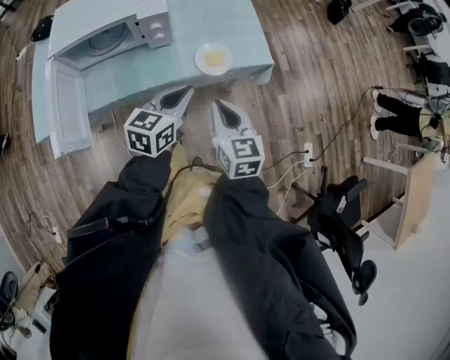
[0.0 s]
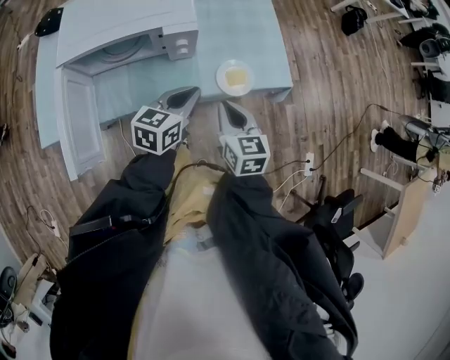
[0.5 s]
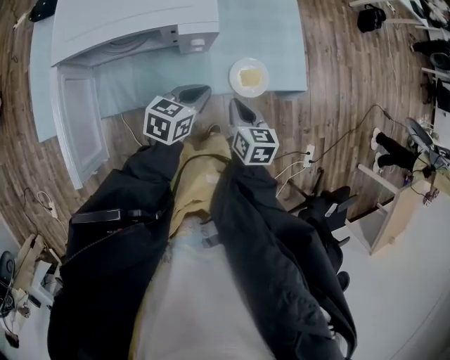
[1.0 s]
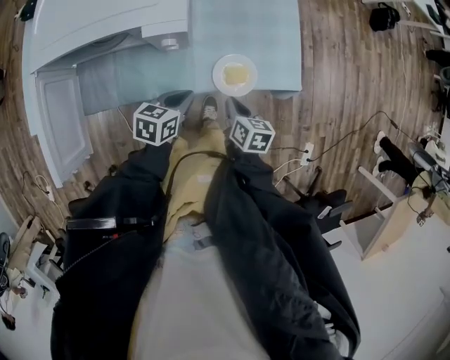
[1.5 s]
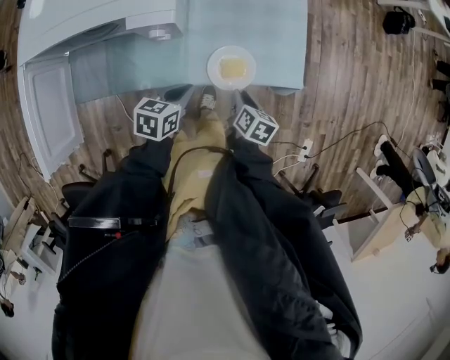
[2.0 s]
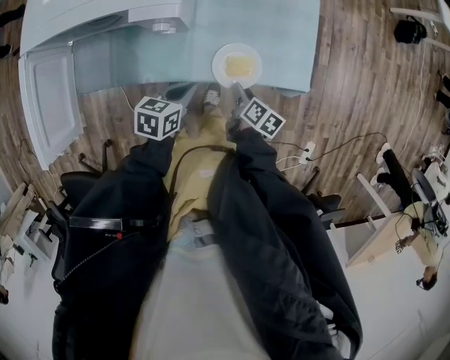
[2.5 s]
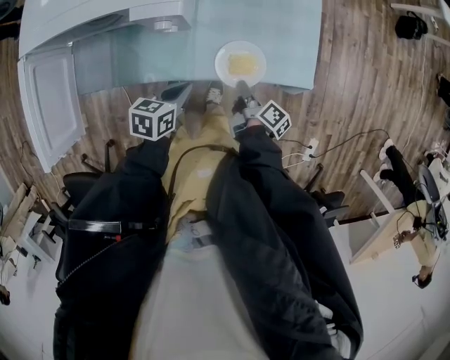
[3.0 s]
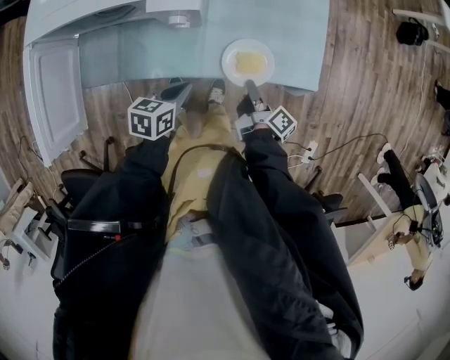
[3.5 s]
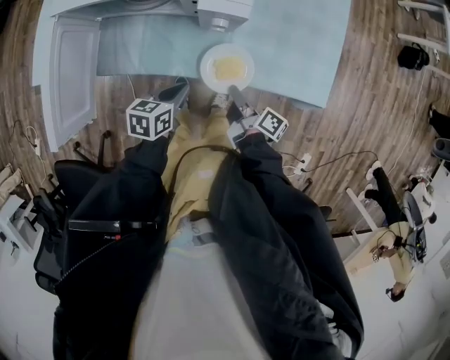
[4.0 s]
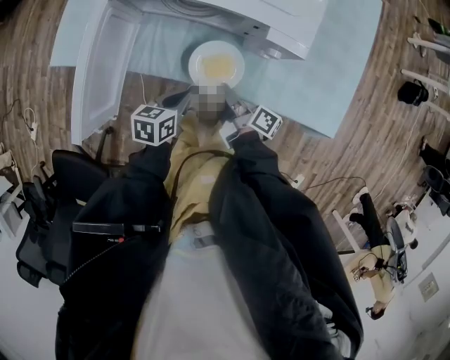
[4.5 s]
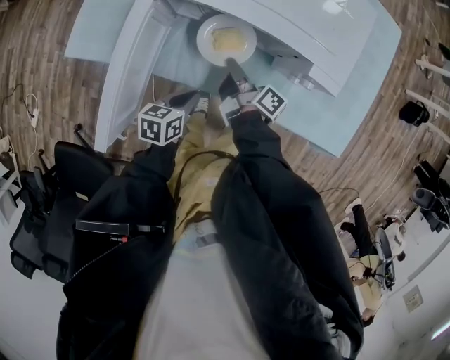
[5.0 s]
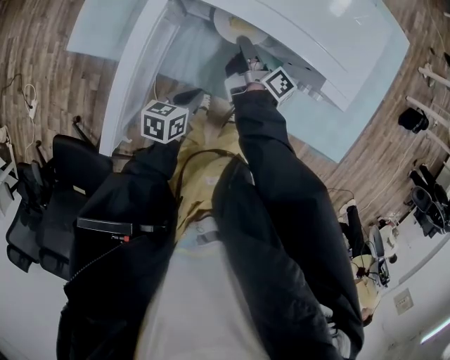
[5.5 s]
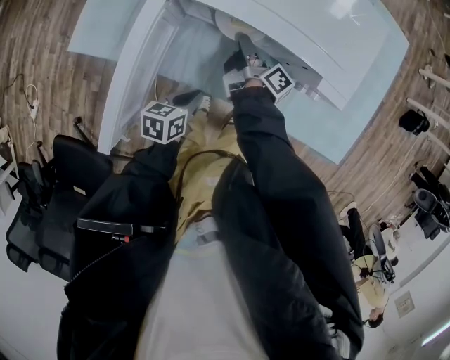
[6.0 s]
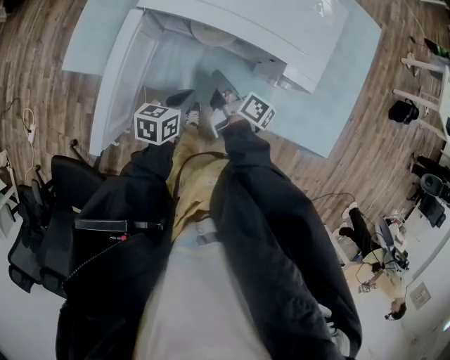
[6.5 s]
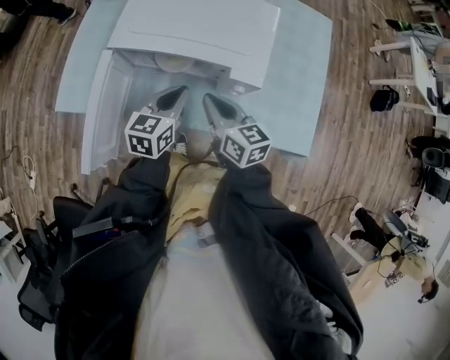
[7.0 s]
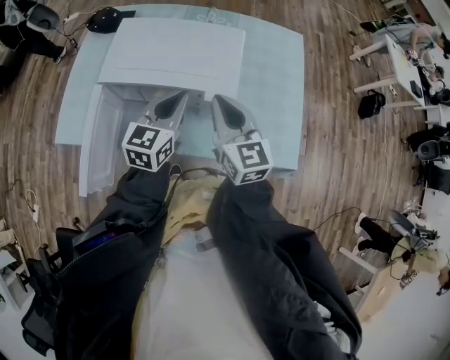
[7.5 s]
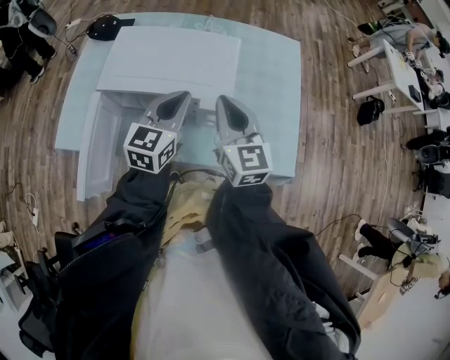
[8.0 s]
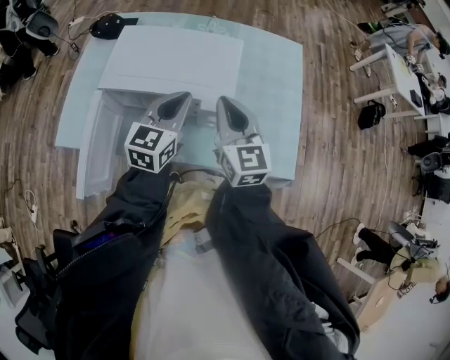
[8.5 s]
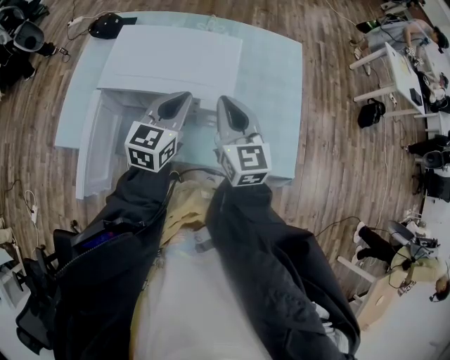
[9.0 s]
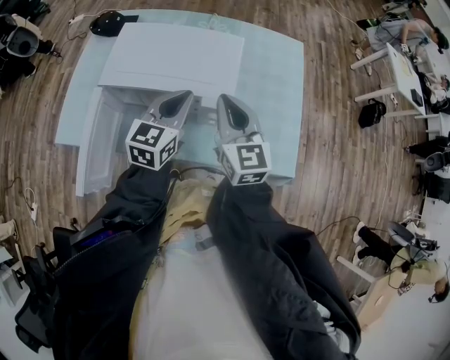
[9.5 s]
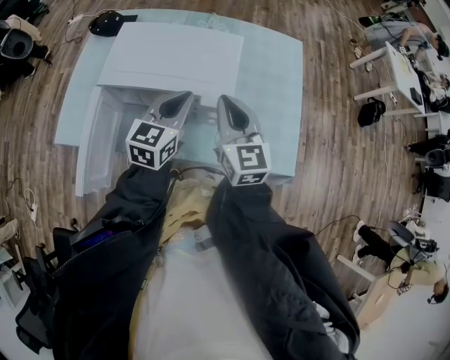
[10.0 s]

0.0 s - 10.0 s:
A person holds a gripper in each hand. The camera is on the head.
0.0 s - 2.0 s: Both grippers move downward and forward, roughly 25 cm. The left gripper swivels approximately 30 degrees. The right gripper changes its angle by roughly 40 degrees, and opens.
2.0 s - 4.0 s: Both grippers travel together to the left, some 10 cm. The right gripper tips its fingers upward by approximately 30 degrees.
4.0 s - 6.0 s: The left gripper travels to the left by some 15 cm. Meanwhile the right gripper shifts about 35 cm to the left and forward.
6.0 s - 8.0 s: The left gripper heads upward, to the right and forward, covering approximately 35 cm, and points its fingers about 30 degrees further upward. The right gripper shifts roughly 35 cm upward and to the right, and twists roughly 90 degrees counterclockwise, seen from behind.
8.0 s - 10.0 s: There are only small adjustments of the grippers.

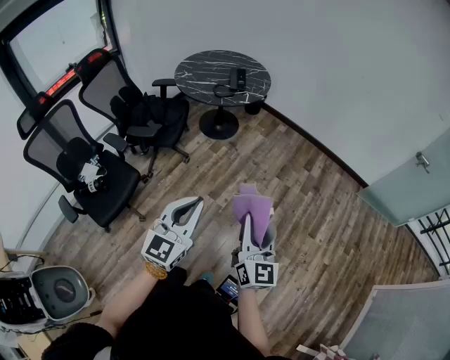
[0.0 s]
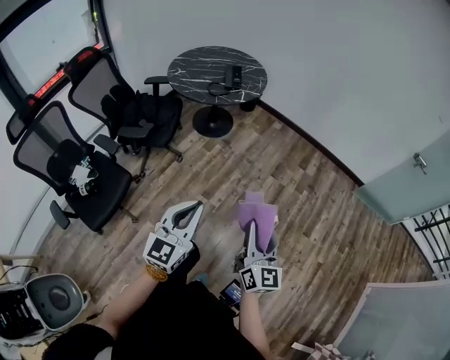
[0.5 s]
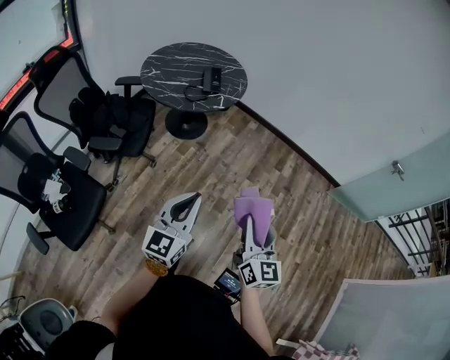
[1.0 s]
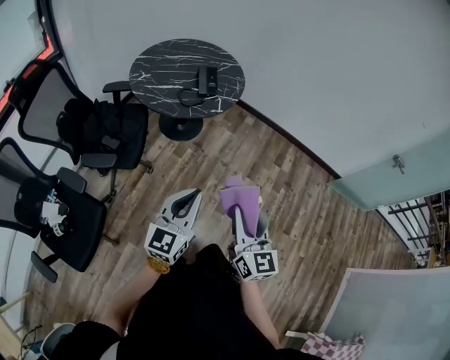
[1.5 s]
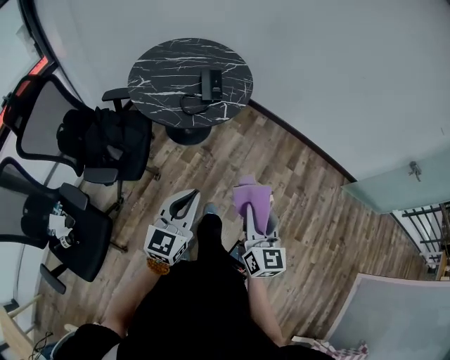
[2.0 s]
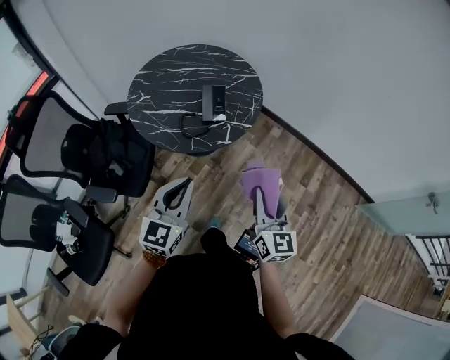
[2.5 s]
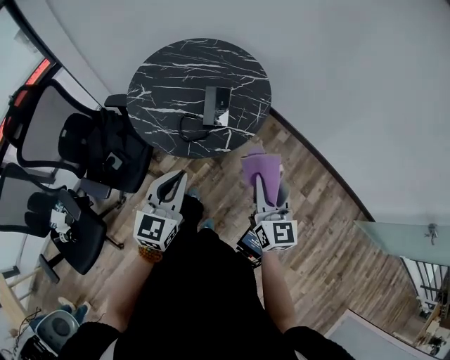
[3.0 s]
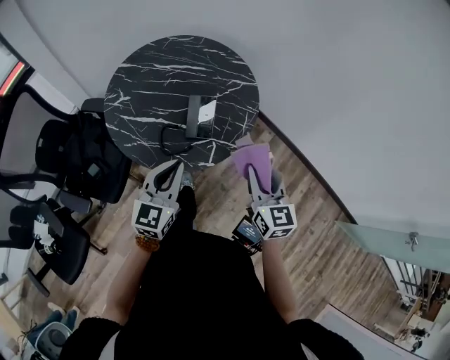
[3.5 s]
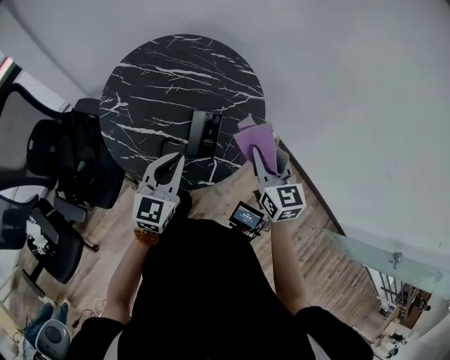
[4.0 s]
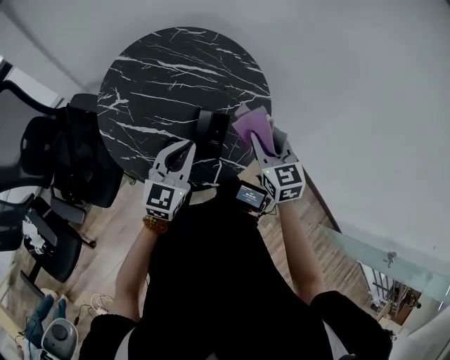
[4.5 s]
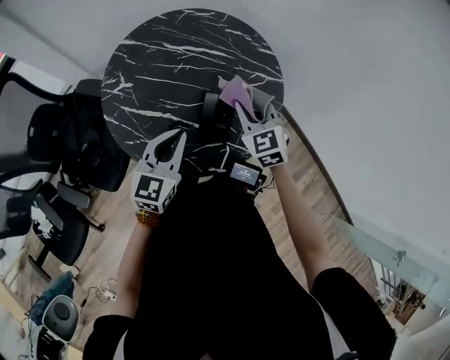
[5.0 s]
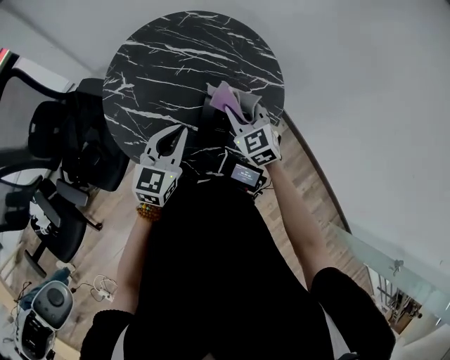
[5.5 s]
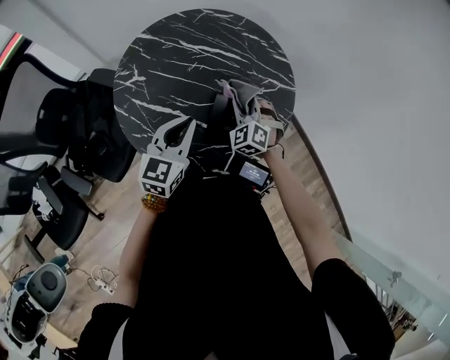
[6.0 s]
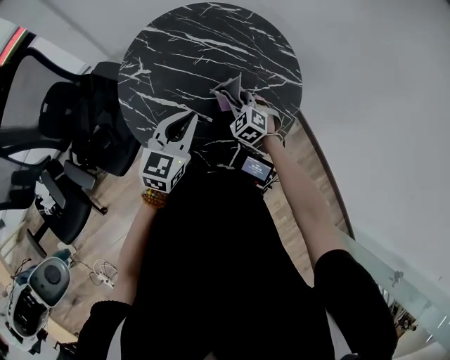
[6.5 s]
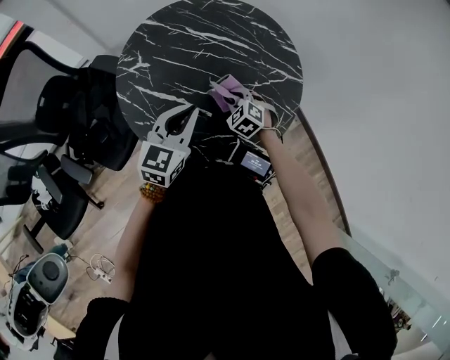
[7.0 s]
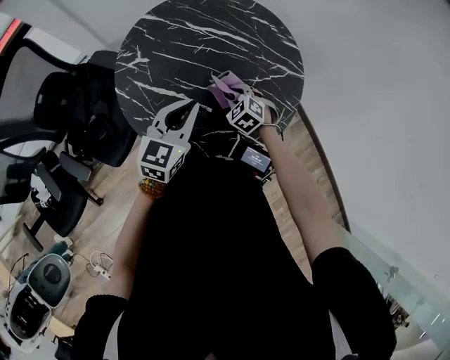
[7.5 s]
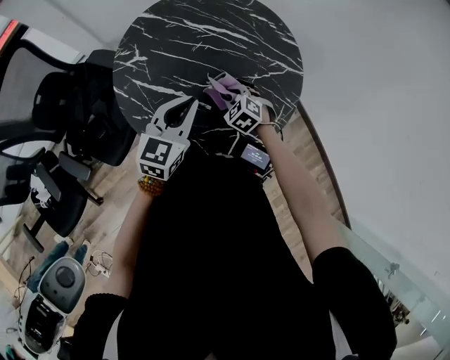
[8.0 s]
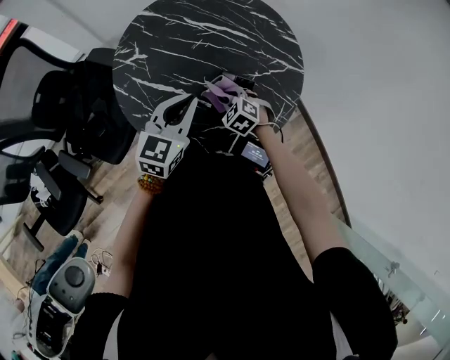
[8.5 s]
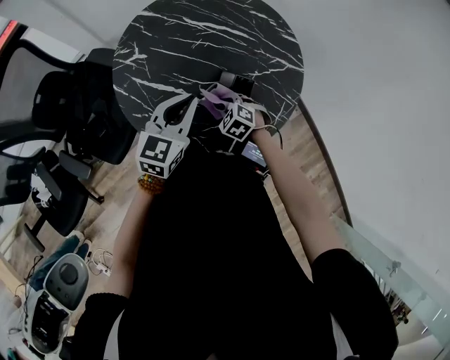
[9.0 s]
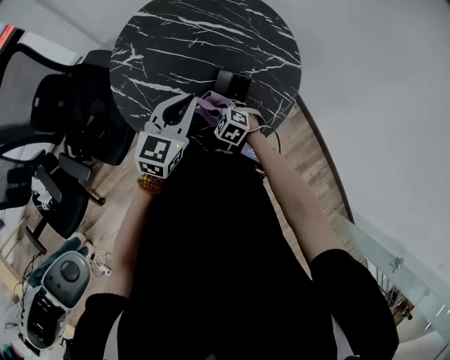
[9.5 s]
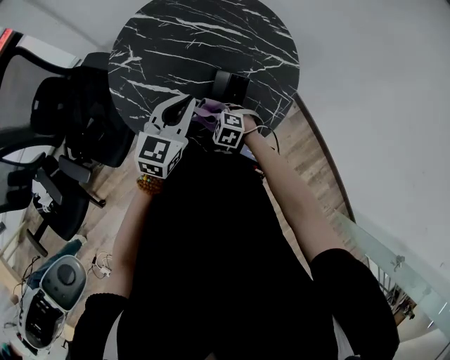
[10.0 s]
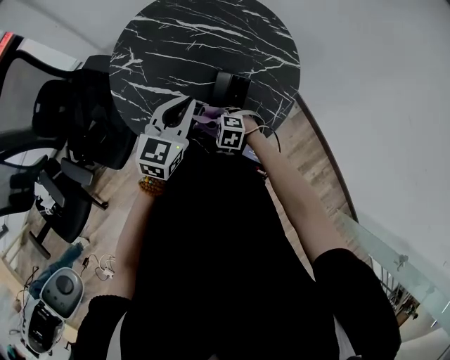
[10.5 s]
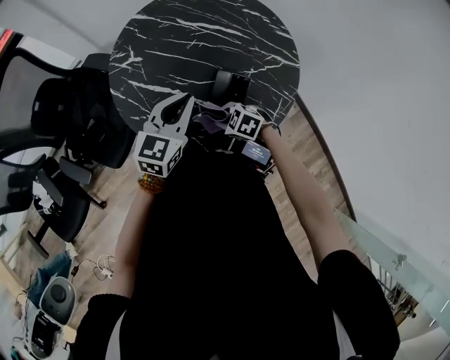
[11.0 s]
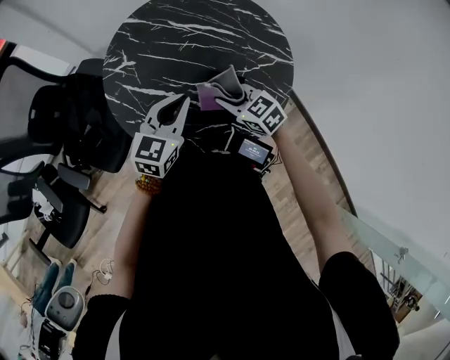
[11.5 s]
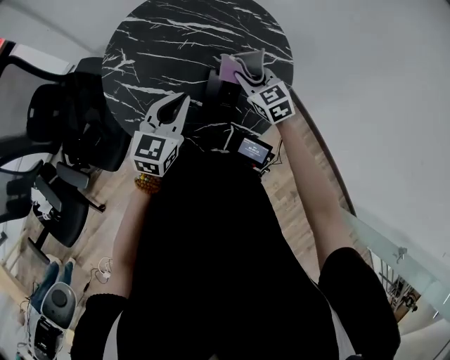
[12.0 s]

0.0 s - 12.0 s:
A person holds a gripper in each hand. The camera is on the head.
0.0 s - 2.0 s: Both grippers travel together forward, roughly 40 cm.
2.0 s - 4.0 s: The pair of grippers is taken forward, some 60 cm. The right gripper rotates about 30 degrees.
4.0 s - 6.0 s: The right gripper goes about 25 cm downward, forward and to the left, and rotates around the line of its fingers by about 50 degrees, counterclockwise from behind, while the left gripper goes approximately 5 cm forward.
6.0 s - 8.0 s: The right gripper travels downward by roughly 10 cm, and turns by about 30 degrees.
8.0 s - 10.0 s: The right gripper shifts roughly 10 cm backward.
10.0 s - 12.0 s: The right gripper travels upward by roughly 15 cm, and tilts its fingers some 30 degrees upward.

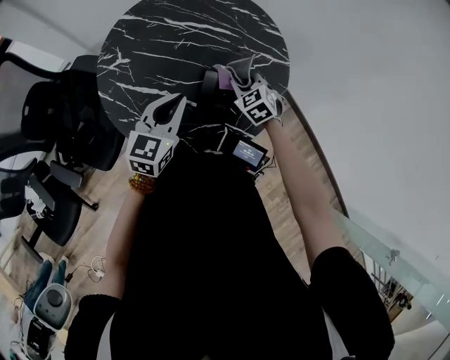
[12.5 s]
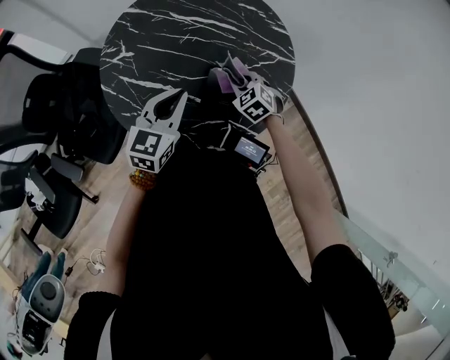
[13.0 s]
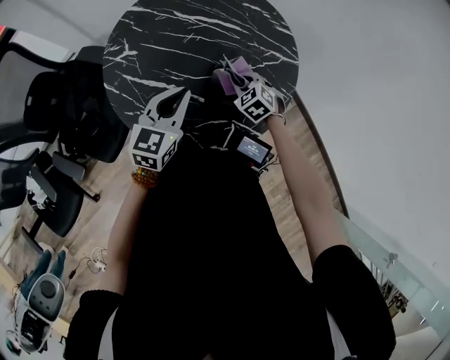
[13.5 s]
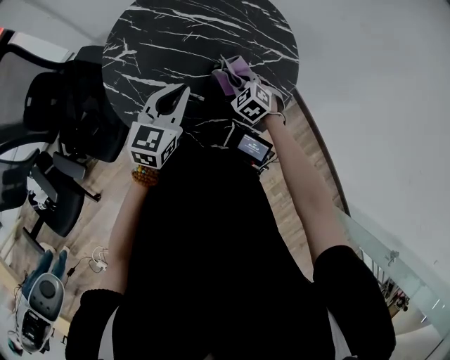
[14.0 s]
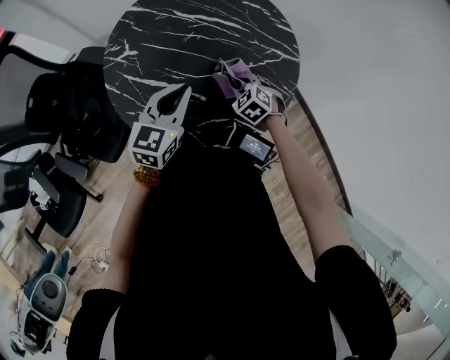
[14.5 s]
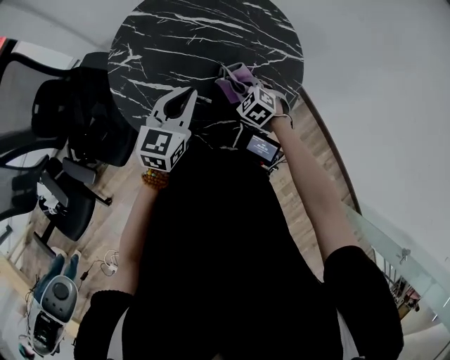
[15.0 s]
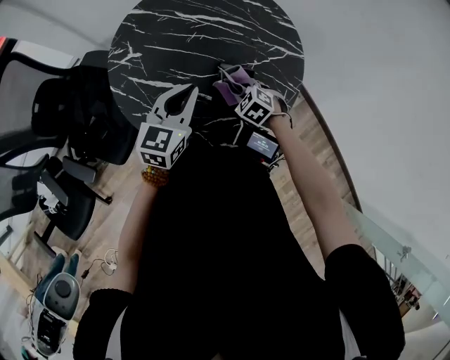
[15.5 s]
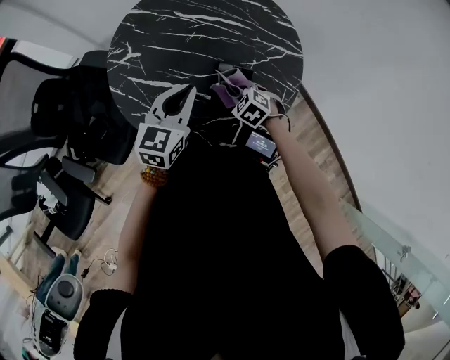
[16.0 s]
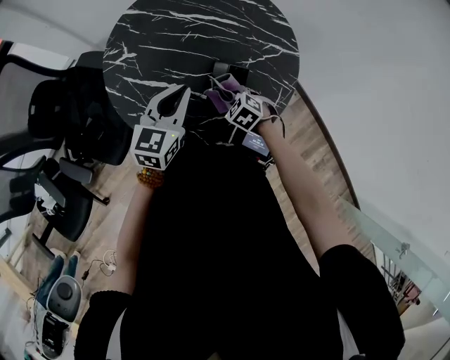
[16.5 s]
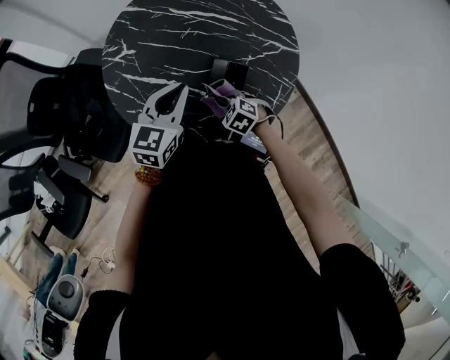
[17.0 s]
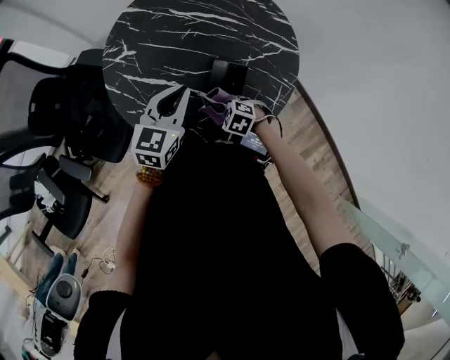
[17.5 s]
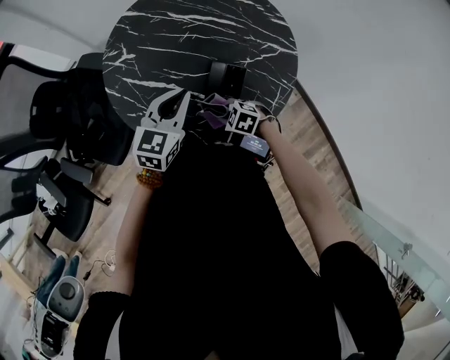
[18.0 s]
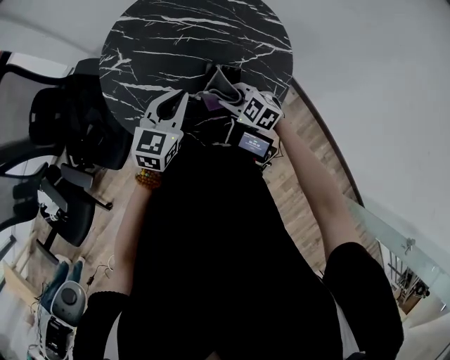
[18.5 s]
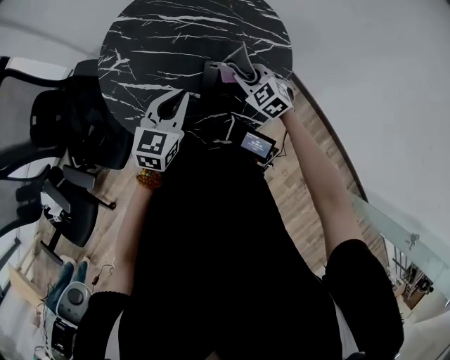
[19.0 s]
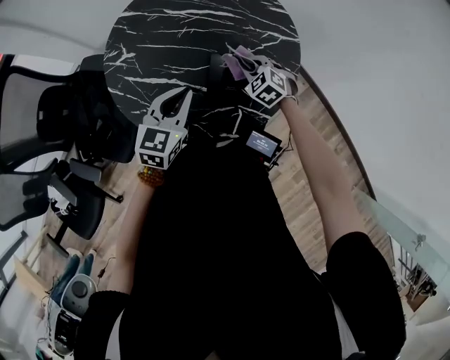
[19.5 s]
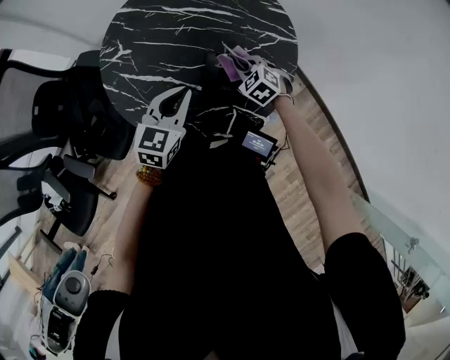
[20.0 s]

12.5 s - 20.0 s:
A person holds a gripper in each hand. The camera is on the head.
12.5 s - 14.5 s: The right gripper shifts by about 5 cm.
14.5 s - 16.5 s: The right gripper travels backward by approximately 5 cm.
16.5 s - 18.0 s: The right gripper travels backward by approximately 5 cm, and changes its angle by roughly 20 degrees.
18.0 s - 20.0 s: The right gripper changes place by roughly 15 cm, and changes its angle by about 30 degrees.
